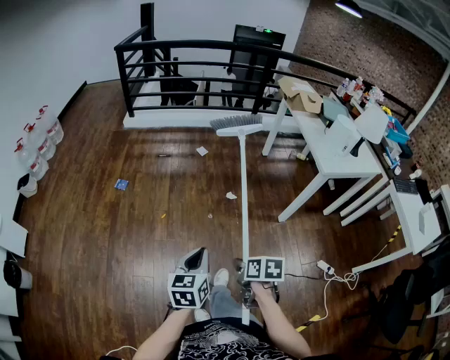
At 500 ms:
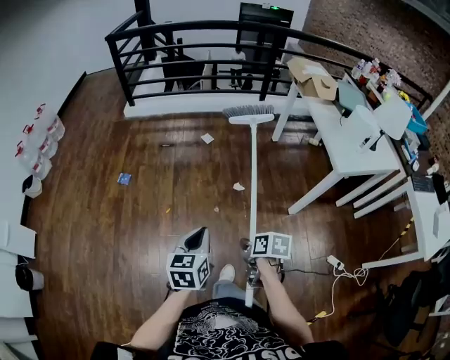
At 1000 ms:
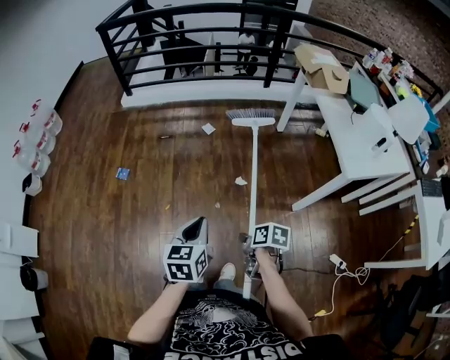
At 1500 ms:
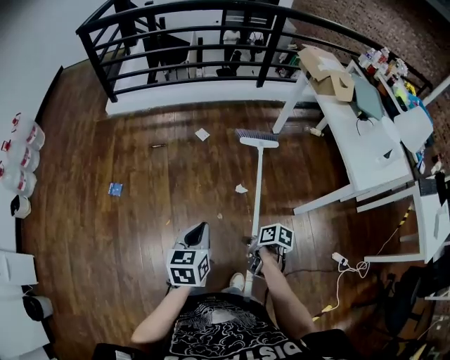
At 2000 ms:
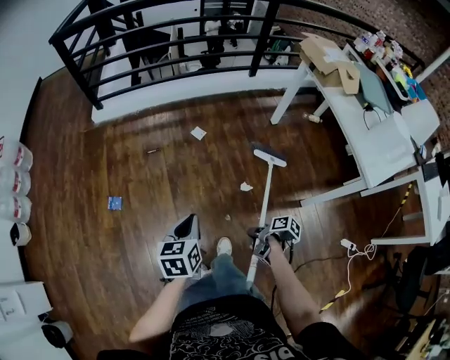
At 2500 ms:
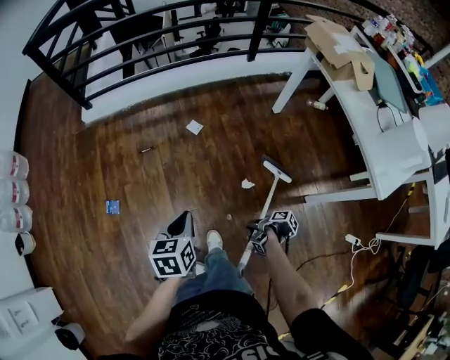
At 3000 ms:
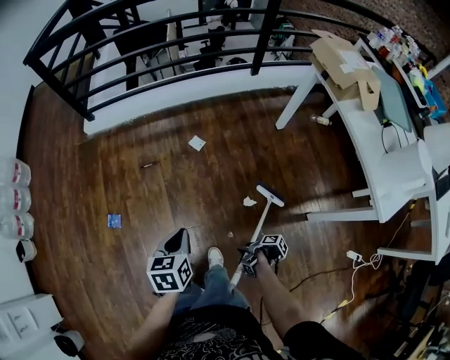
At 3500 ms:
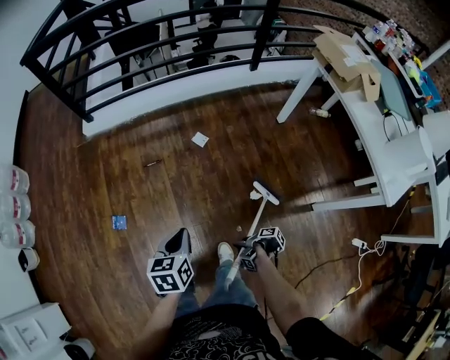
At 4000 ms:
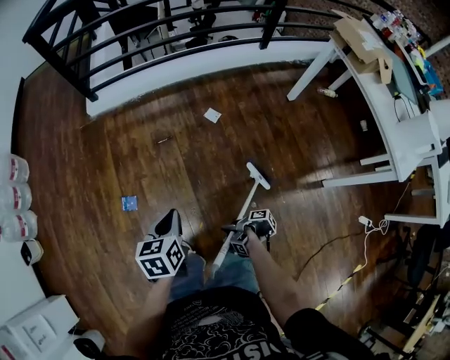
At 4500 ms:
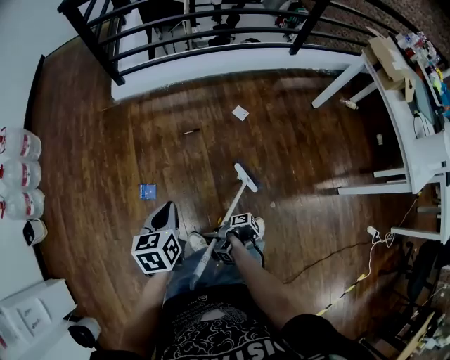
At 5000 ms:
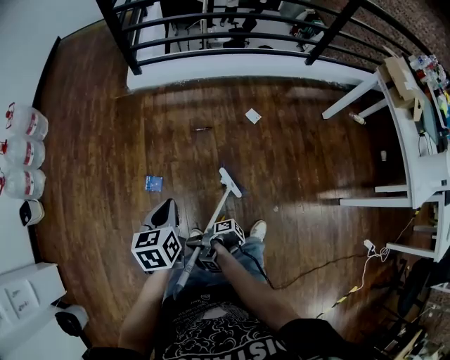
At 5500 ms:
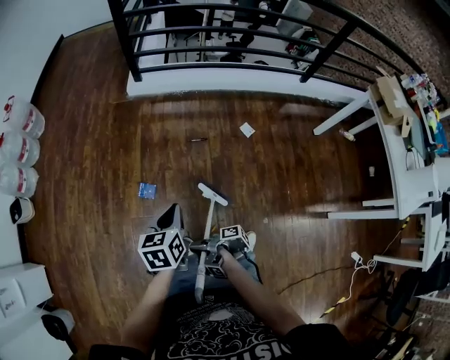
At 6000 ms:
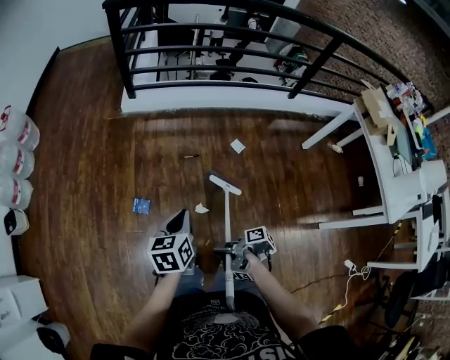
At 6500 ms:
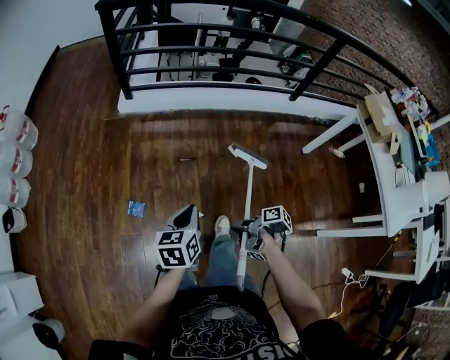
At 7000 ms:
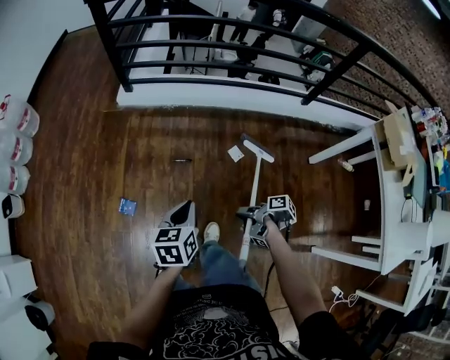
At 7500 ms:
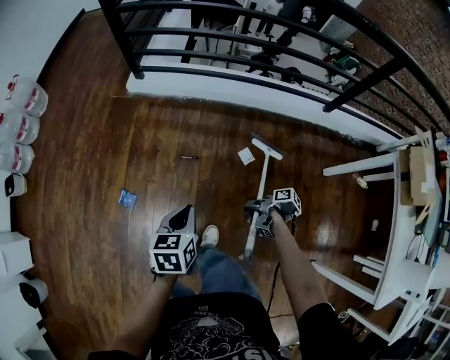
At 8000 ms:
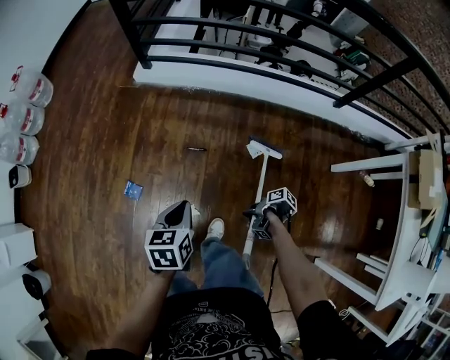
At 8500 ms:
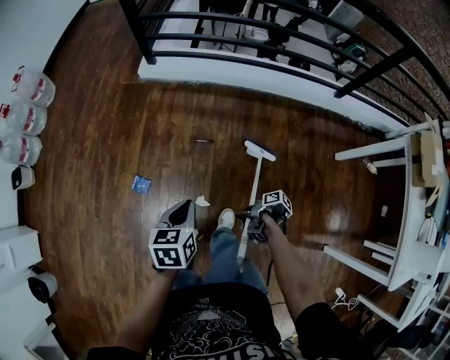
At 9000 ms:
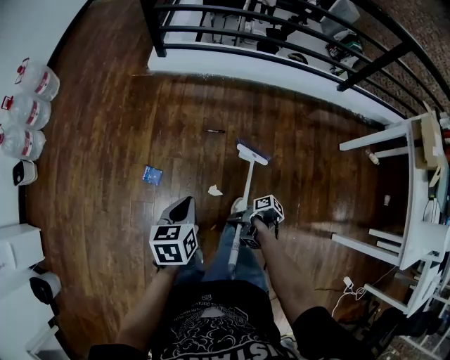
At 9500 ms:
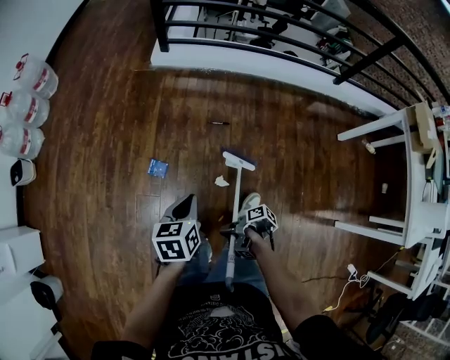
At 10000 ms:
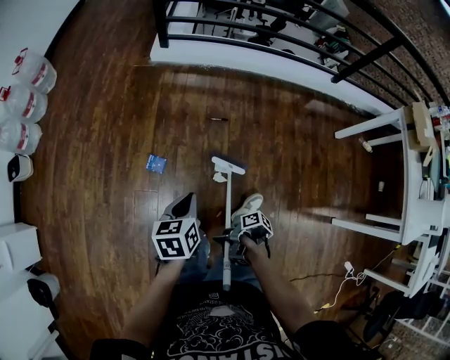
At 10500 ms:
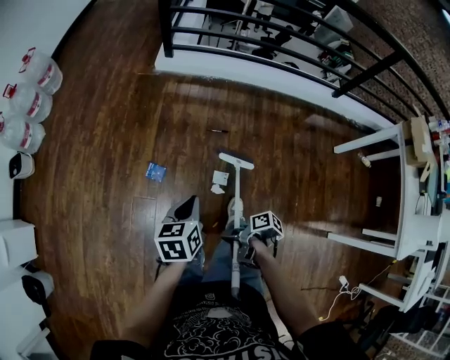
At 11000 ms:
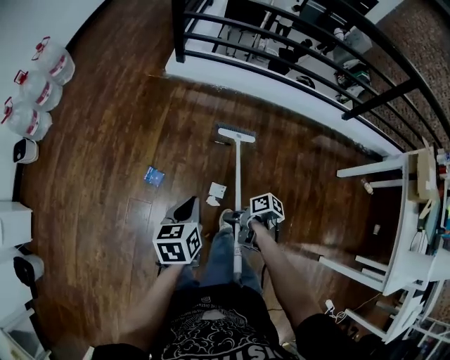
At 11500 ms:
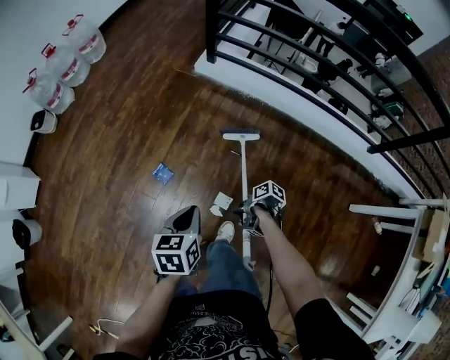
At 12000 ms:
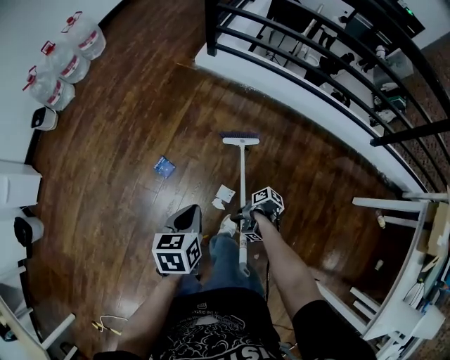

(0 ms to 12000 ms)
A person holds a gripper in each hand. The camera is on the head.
0 ms - 2000 ms: The left gripper changes place by about 50 cm.
2000 ms - 4000 ms: The left gripper moves roughly 25 cm.
4000 ms - 6000 ms: The left gripper shifts by some 15 cm.
6000 ms - 8000 ms: The left gripper ends up roughly 25 cm from where it was.
8000 ms - 10000 ms: The left gripper shifts by roughly 30 cm.
10000 ms - 12000 ms: The left gripper shifts by roughly 15 cm.

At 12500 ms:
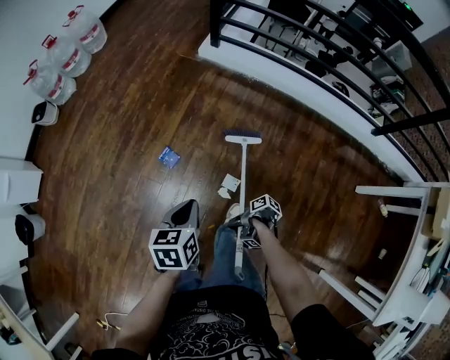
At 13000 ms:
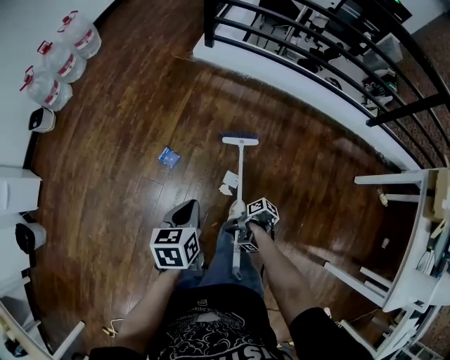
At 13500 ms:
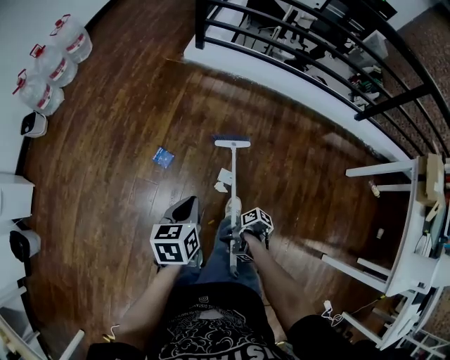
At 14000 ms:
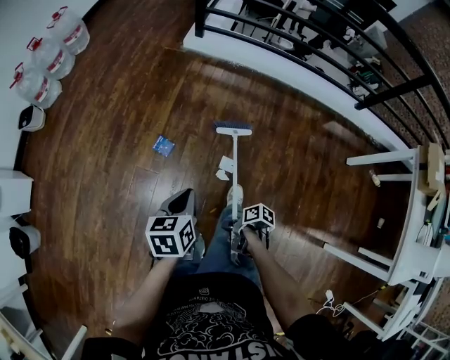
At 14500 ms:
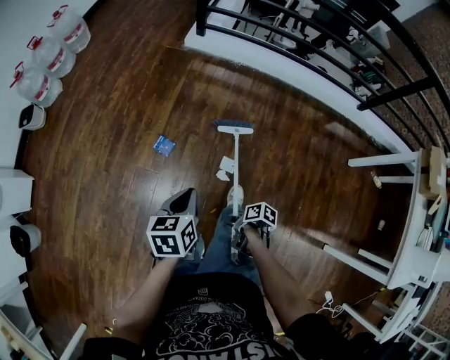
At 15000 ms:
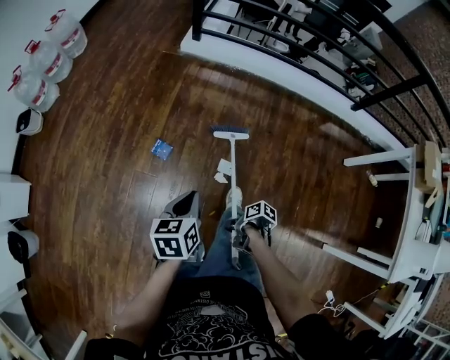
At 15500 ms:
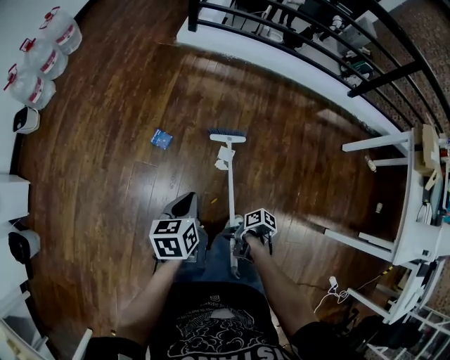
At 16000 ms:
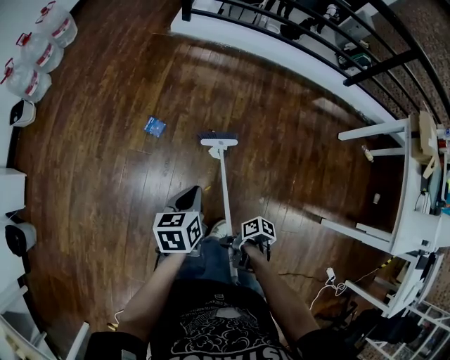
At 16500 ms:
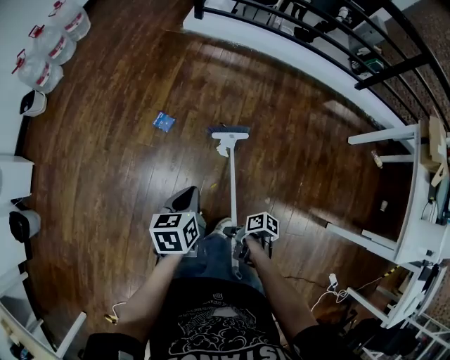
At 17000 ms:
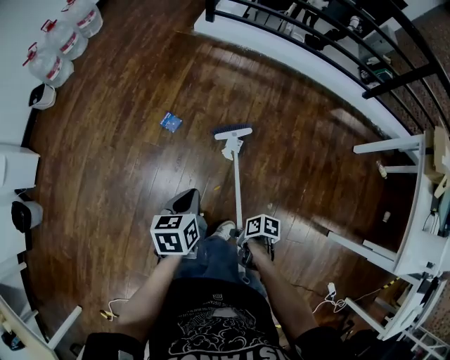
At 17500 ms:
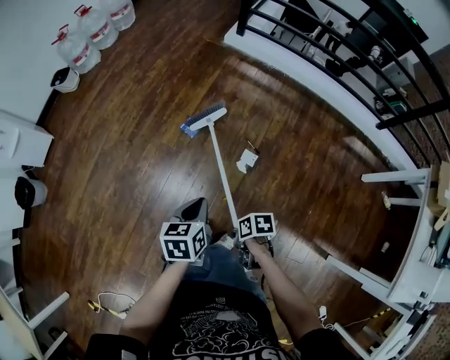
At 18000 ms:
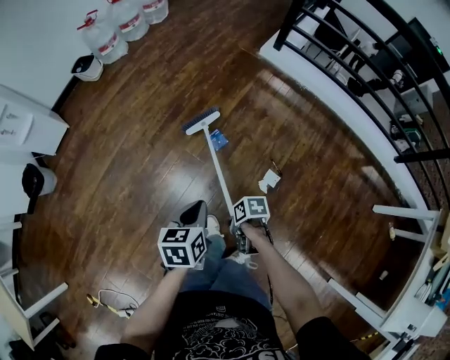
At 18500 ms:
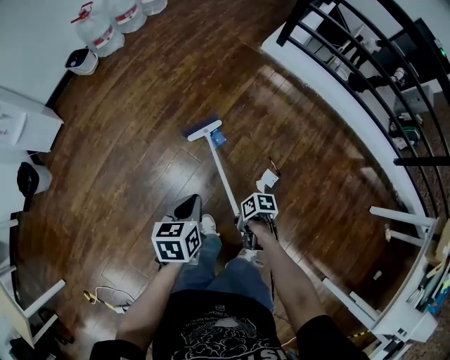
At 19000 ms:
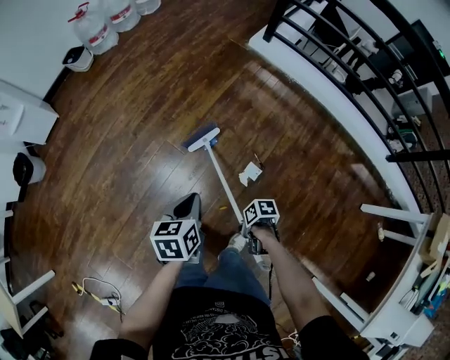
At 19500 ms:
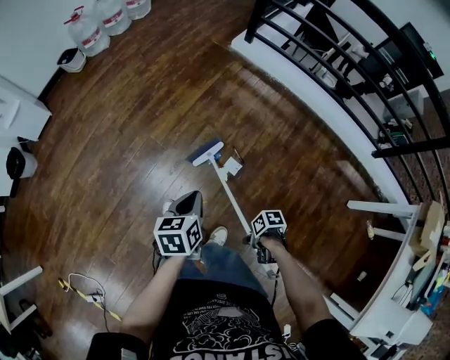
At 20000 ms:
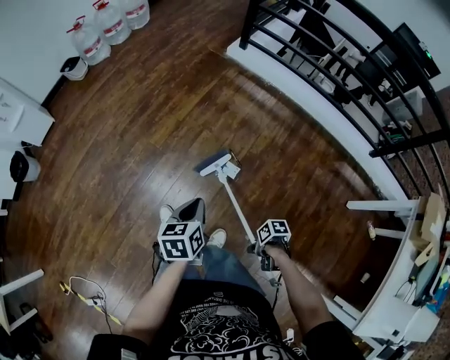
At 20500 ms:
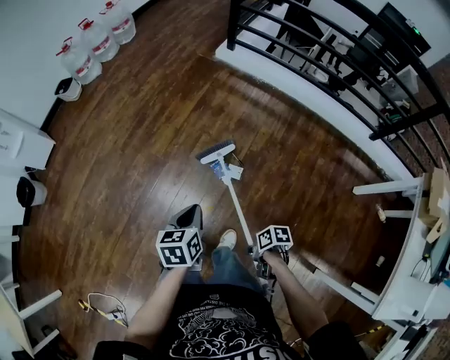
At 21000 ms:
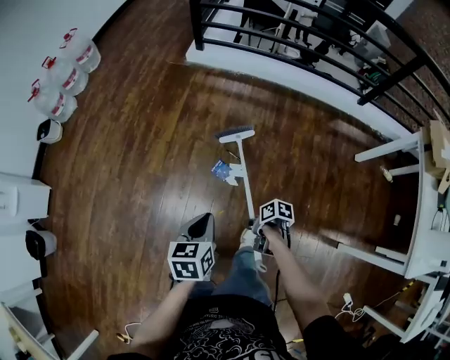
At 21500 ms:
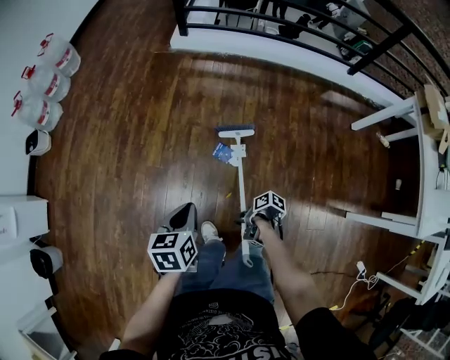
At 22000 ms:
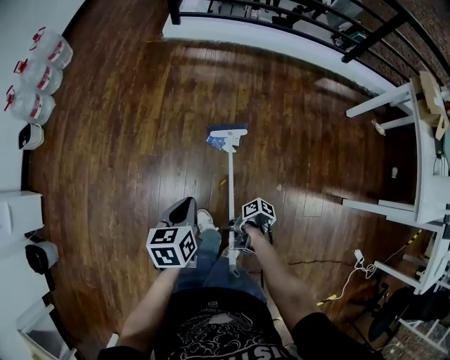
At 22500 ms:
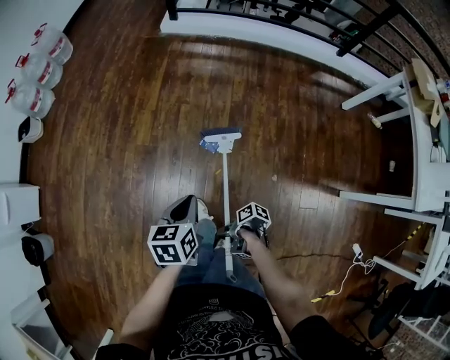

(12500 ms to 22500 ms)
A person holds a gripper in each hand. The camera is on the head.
12500 ms - 14500 ms: The left gripper shifts by roughly 10 cm.
14500 ms - 16500 ms: The left gripper ends up about 15 cm from where it was.
16500 ms - 18500 ms: The left gripper moves about 20 cm.
18500 ms - 20500 ms: The left gripper changes place by roughly 30 cm.
20500 ms - 22500 ms: The left gripper changes place by some 15 cm, and turns by roughly 20 degrees.

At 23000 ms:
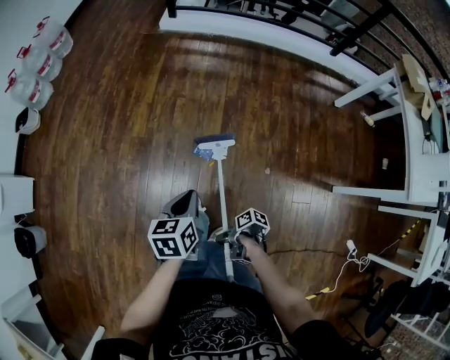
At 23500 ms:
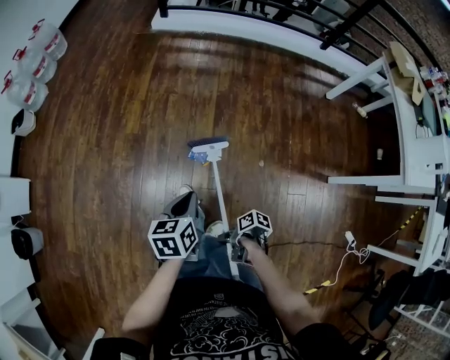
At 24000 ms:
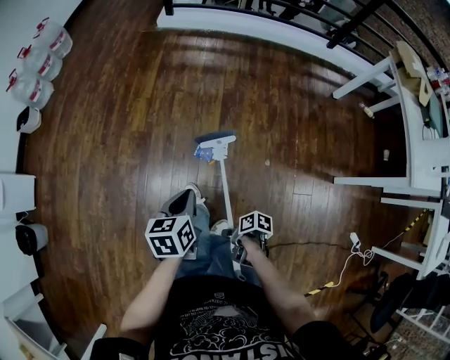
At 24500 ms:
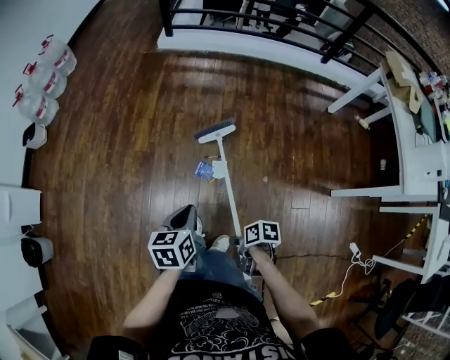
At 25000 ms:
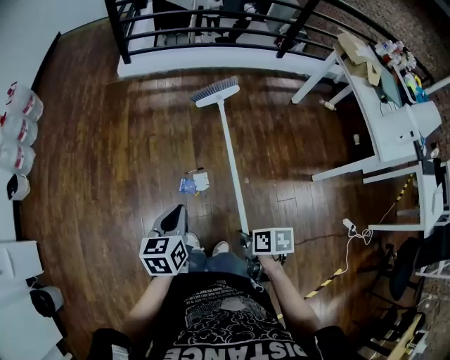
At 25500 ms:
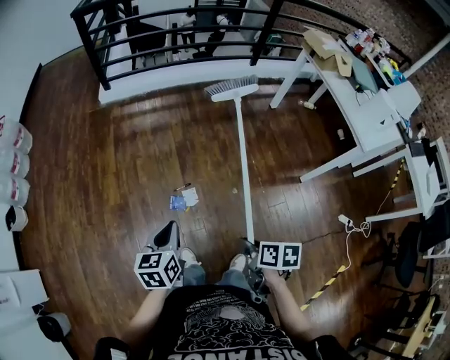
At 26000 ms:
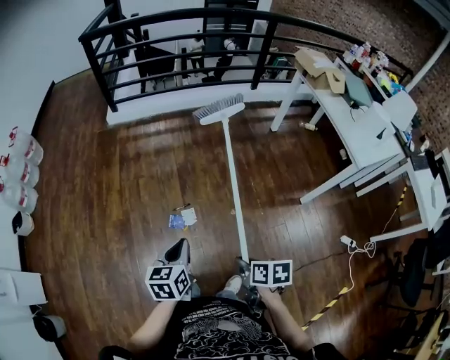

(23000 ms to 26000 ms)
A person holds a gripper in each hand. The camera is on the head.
23000 ms - 24500 ms: The left gripper ends up some 5 cm from where it was.
24500 ms - 26000 ms: The left gripper moves about 15 cm.

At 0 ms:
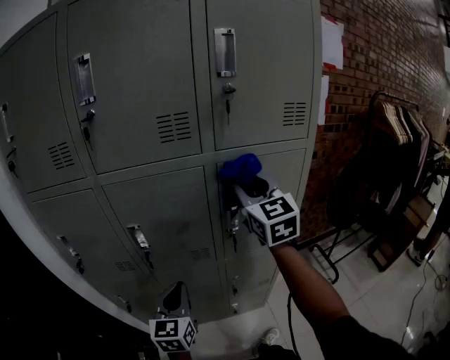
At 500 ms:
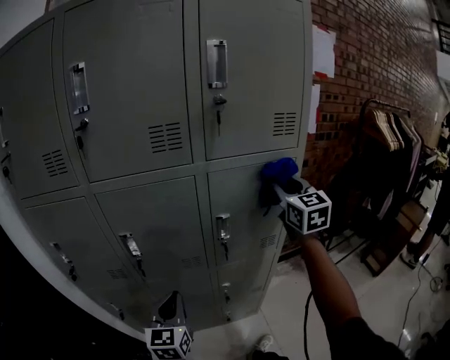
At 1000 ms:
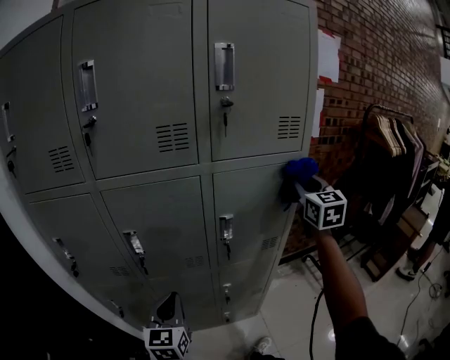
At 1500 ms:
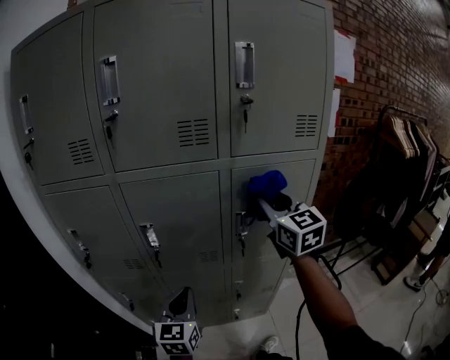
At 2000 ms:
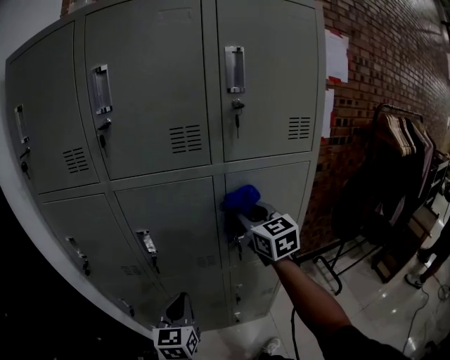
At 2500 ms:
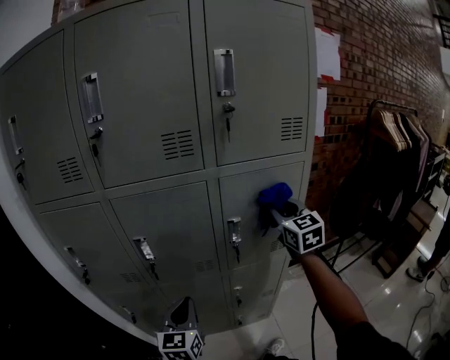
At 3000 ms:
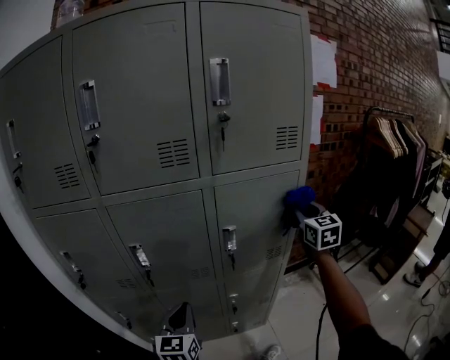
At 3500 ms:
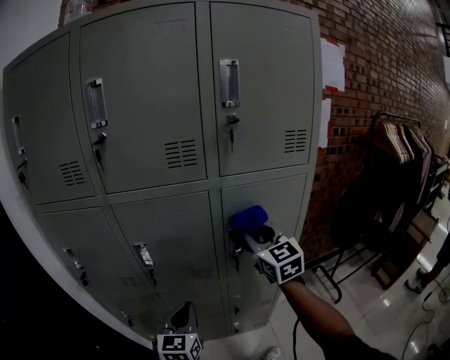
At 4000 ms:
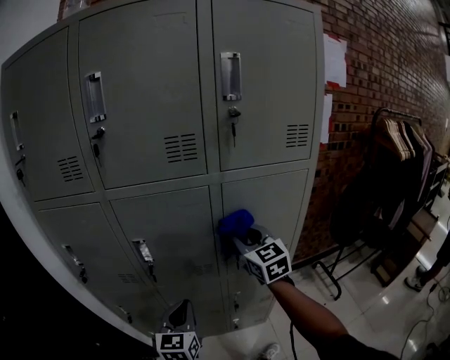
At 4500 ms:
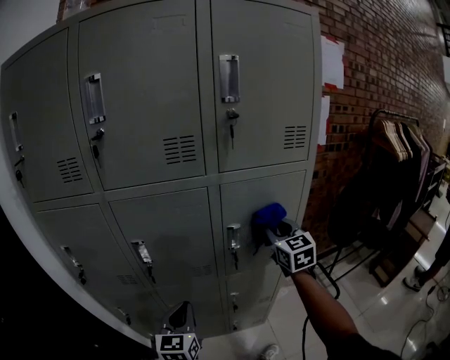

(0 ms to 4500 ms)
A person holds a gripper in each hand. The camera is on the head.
0 ms - 2000 ms: The right gripper is displaced downward by approximately 5 cm, and reaches approximately 20 cm to the right, then returns.
2000 ms - 4500 ms: The right gripper goes left and right, some 25 cm each way, reversing 2 times.
